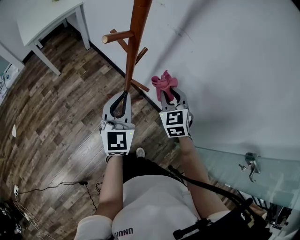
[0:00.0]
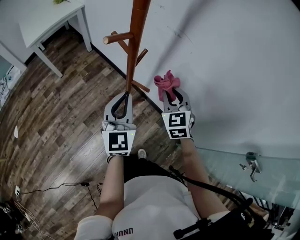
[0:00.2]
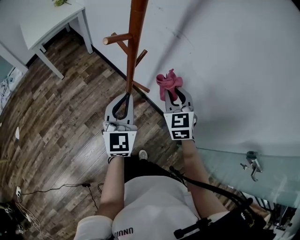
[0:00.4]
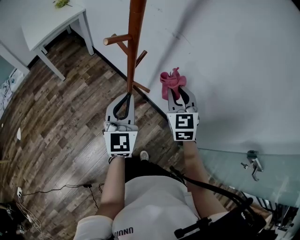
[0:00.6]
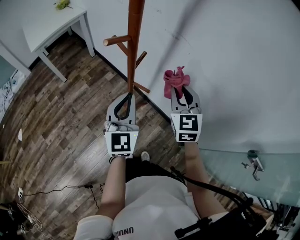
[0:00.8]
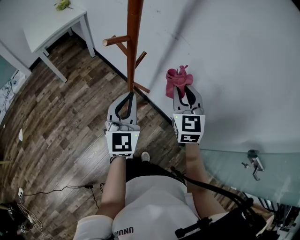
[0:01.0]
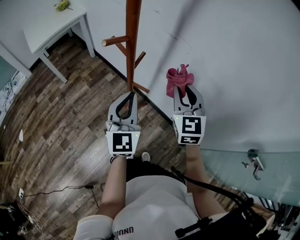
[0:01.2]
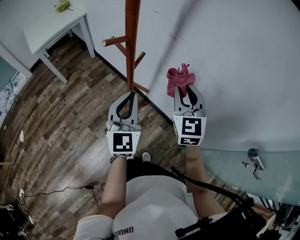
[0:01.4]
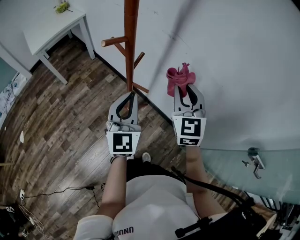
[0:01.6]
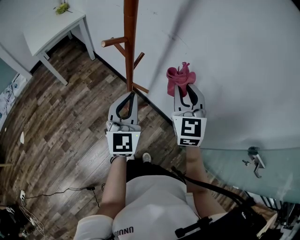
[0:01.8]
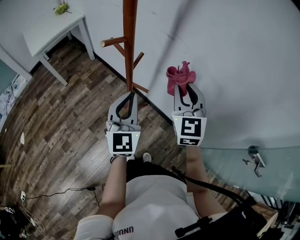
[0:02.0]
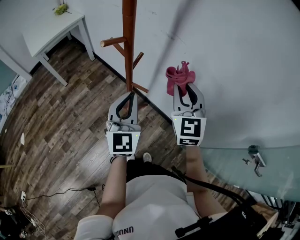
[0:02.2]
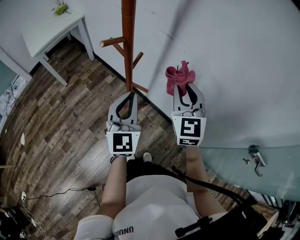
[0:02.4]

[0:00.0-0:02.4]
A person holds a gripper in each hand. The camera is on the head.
0:00.0 to 0:01.2: The right gripper is displaced upward by approximately 10 cm.
0:01.2 to 0:02.4: There are only small adjustments of the grippers.

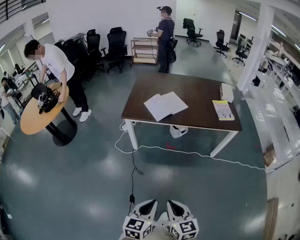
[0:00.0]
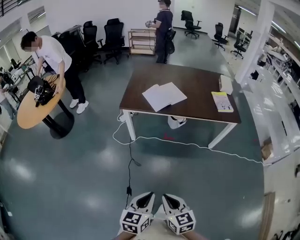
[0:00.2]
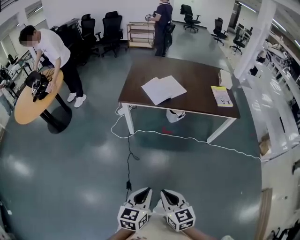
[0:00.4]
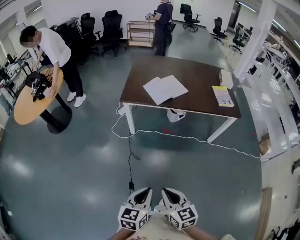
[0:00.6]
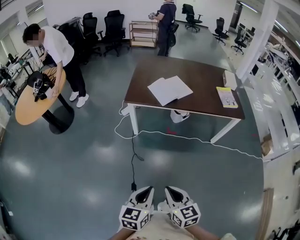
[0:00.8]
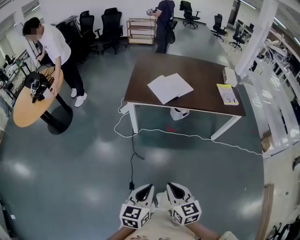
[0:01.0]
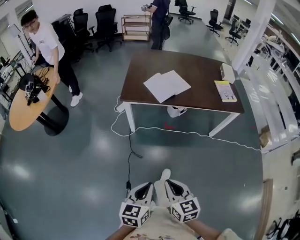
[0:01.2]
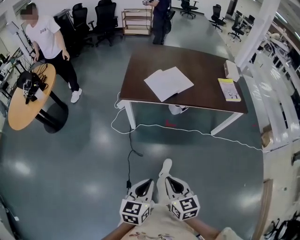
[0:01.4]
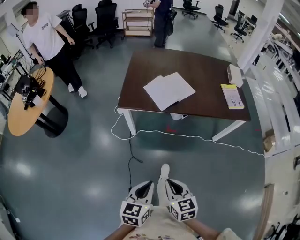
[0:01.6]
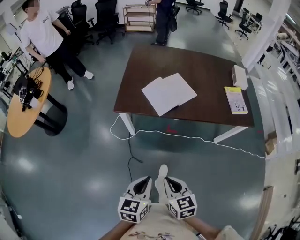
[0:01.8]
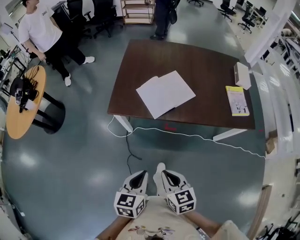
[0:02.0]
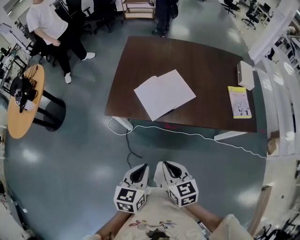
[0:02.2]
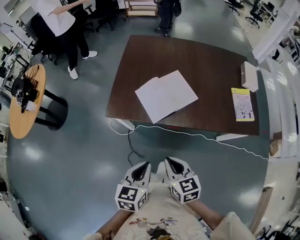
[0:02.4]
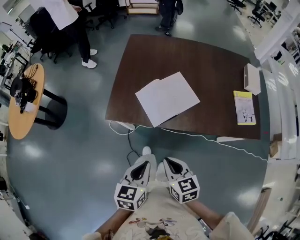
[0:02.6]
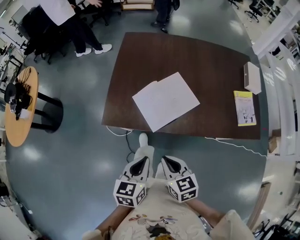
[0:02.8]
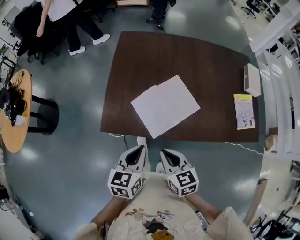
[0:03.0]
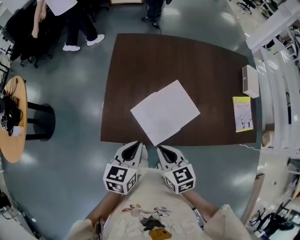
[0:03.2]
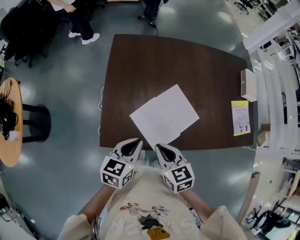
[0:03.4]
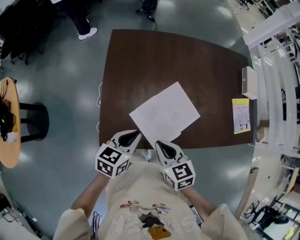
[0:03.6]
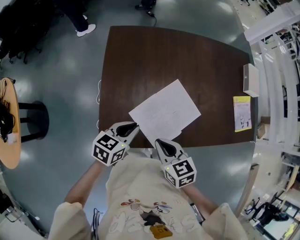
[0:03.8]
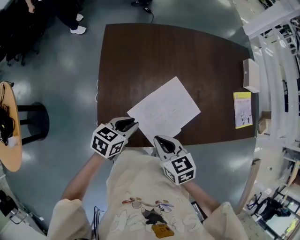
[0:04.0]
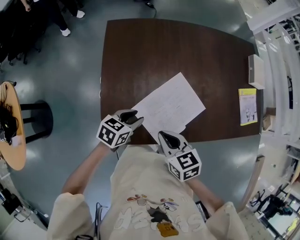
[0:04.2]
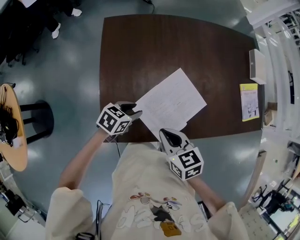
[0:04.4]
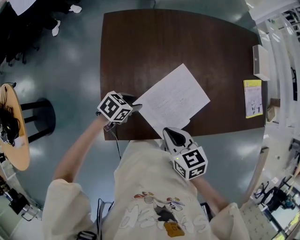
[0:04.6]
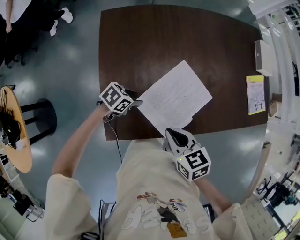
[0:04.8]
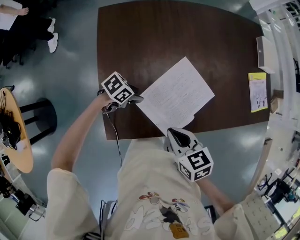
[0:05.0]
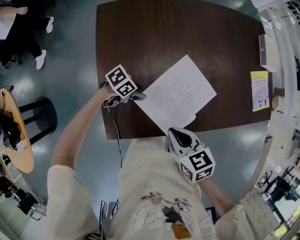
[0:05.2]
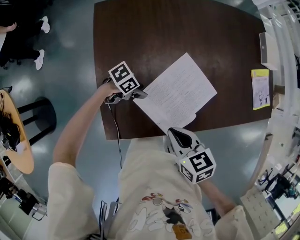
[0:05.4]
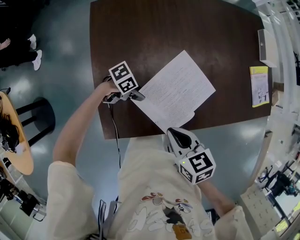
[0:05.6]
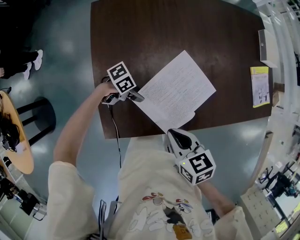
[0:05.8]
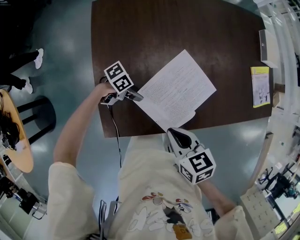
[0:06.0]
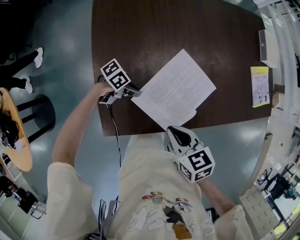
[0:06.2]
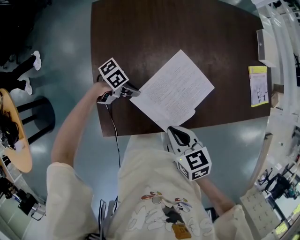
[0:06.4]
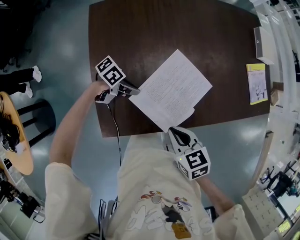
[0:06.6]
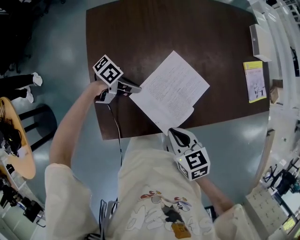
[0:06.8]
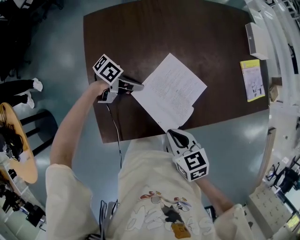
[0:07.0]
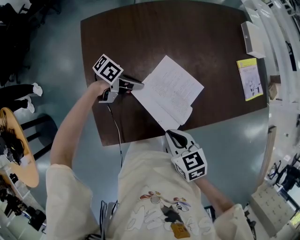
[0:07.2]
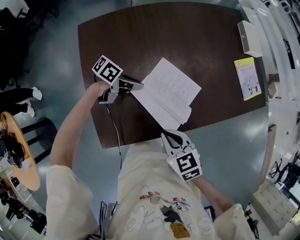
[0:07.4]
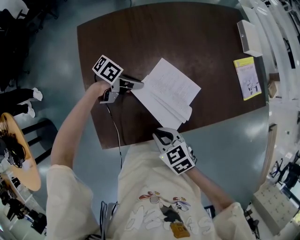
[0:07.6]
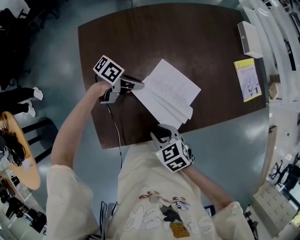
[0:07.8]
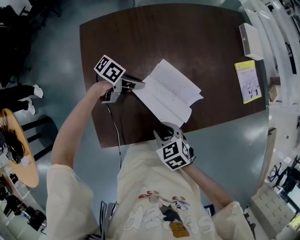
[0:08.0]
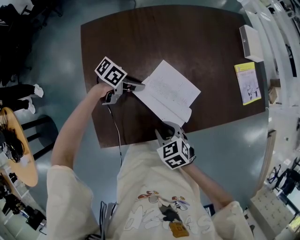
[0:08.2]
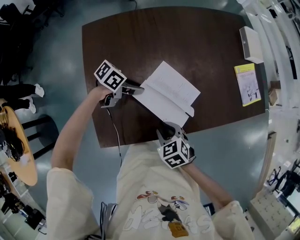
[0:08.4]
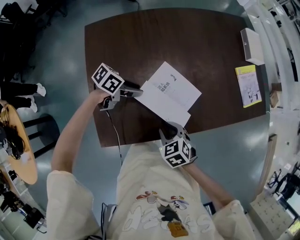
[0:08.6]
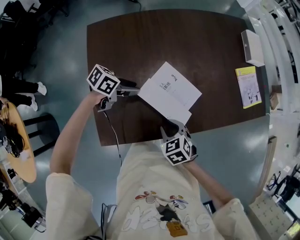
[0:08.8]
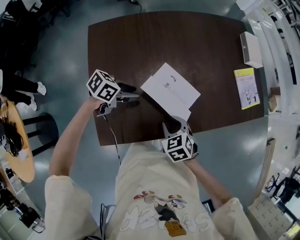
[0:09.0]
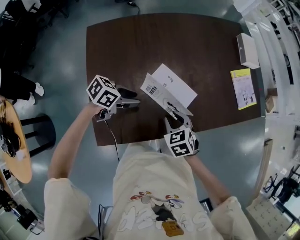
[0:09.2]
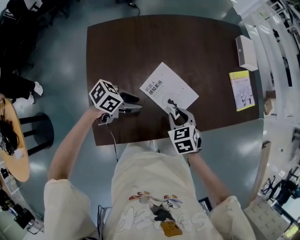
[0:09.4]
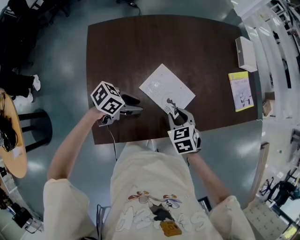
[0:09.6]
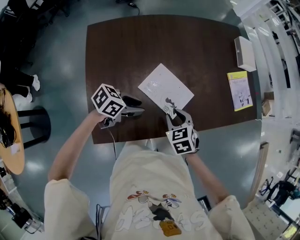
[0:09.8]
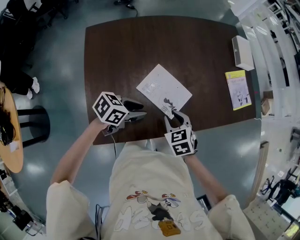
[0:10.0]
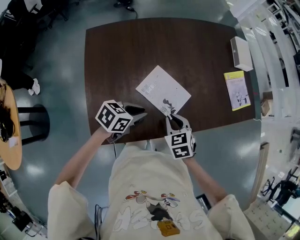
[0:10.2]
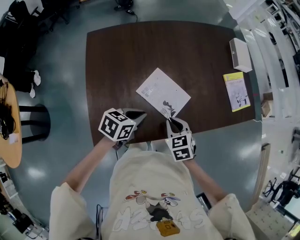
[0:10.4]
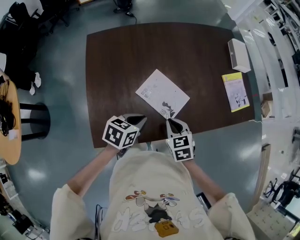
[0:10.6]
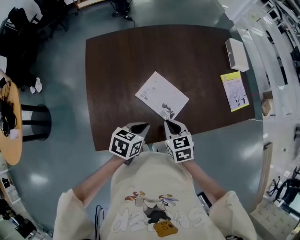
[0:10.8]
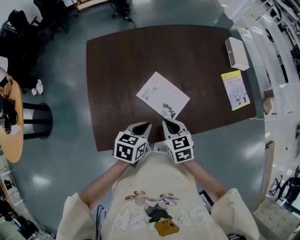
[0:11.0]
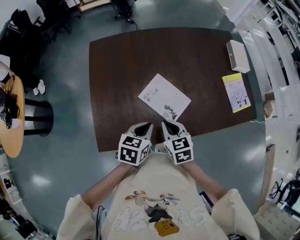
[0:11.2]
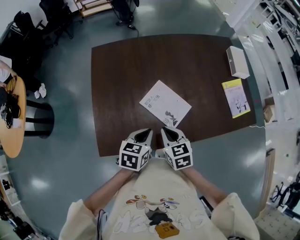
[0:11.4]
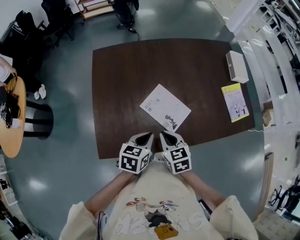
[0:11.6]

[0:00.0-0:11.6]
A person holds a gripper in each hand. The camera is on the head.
0:00.0 to 0:01.4: The grippers both shift forward and to the left by about 20 cm.
0:01.4 to 0:02.8: The two grippers travel together, forward, roughly 50 cm.
0:02.8 to 0:04.4: The right gripper shifts by approximately 30 cm. The left gripper shifts by about 40 cm, swivels about 50 degrees, and opens up.
0:04.4 to 0:05.8: The left gripper goes about 15 cm downward, and changes its angle by about 40 degrees.
0:05.8 to 0:07.2: The left gripper shifts about 10 cm upward, swivels roughly 20 degrees, and closes up. The right gripper moves some 5 cm.
0:07.2 to 0:08.8: The right gripper goes some 5 cm downward, changes its angle by some 20 degrees, and opens up; the left gripper changes its angle by roughly 20 degrees, and opens up.
0:08.8 to 0:10.2: The left gripper moves some 15 cm, and closes up, while the right gripper shifts by some 10 cm.
0:10.2 to 0:11.6: The right gripper shifts by approximately 5 cm. The left gripper moves roughly 5 cm, and turns by approximately 30 degrees.

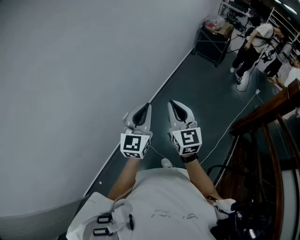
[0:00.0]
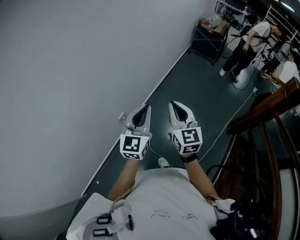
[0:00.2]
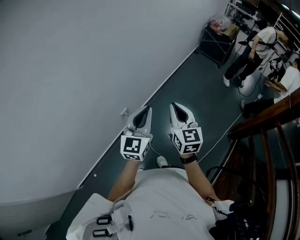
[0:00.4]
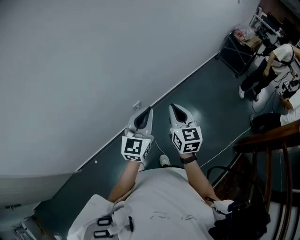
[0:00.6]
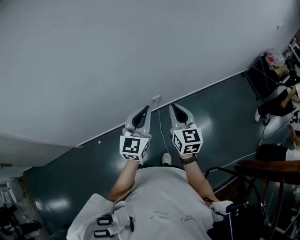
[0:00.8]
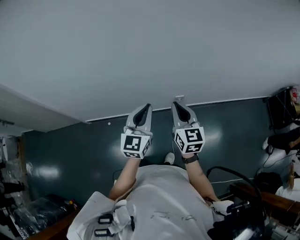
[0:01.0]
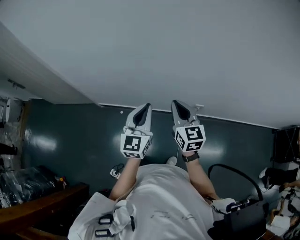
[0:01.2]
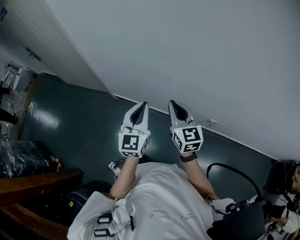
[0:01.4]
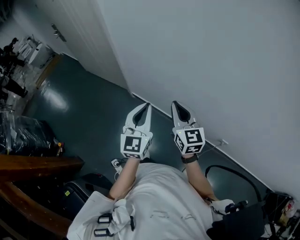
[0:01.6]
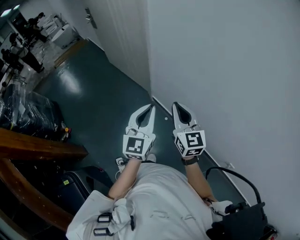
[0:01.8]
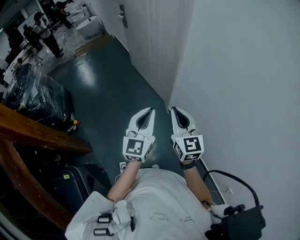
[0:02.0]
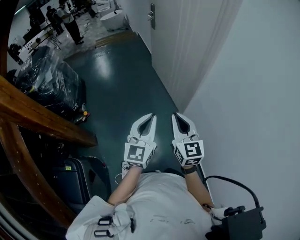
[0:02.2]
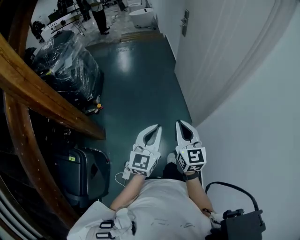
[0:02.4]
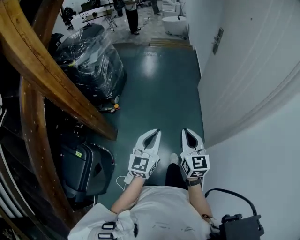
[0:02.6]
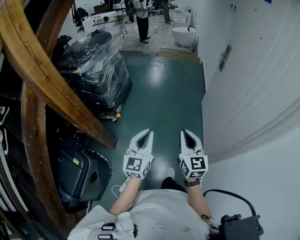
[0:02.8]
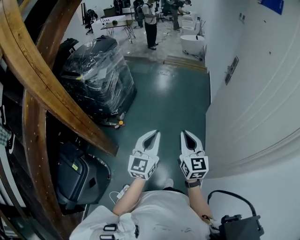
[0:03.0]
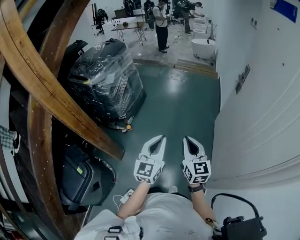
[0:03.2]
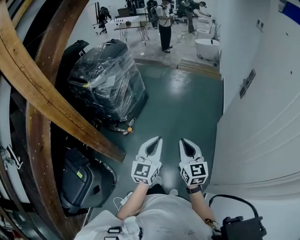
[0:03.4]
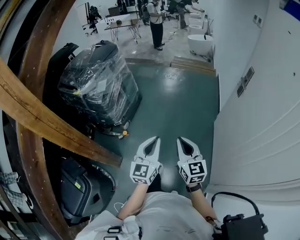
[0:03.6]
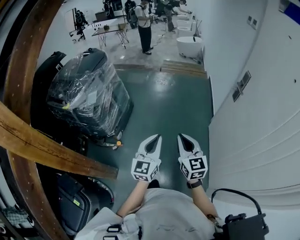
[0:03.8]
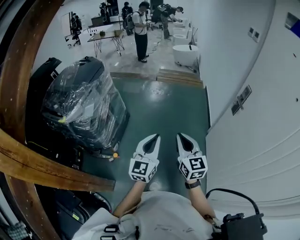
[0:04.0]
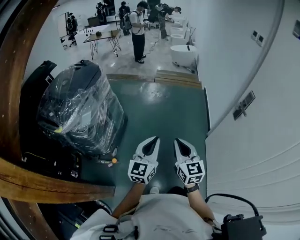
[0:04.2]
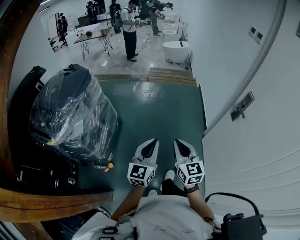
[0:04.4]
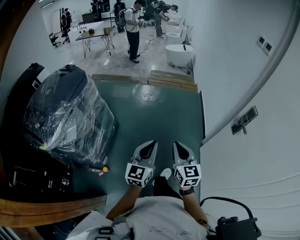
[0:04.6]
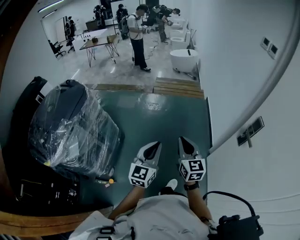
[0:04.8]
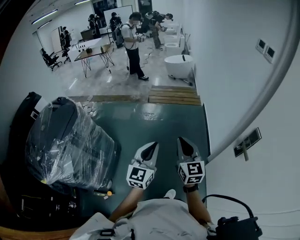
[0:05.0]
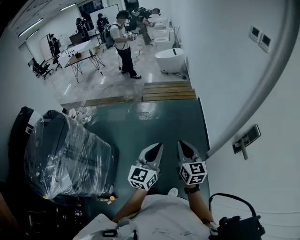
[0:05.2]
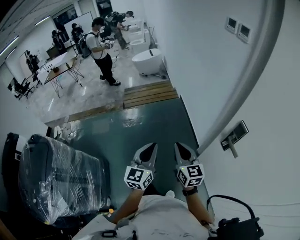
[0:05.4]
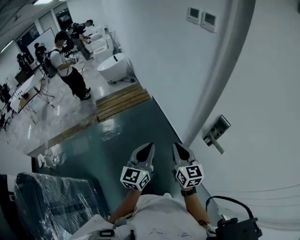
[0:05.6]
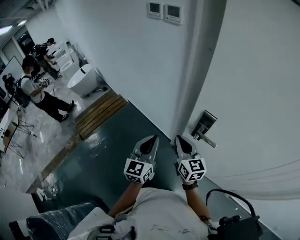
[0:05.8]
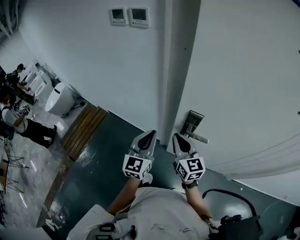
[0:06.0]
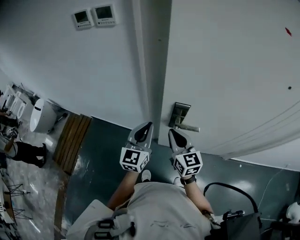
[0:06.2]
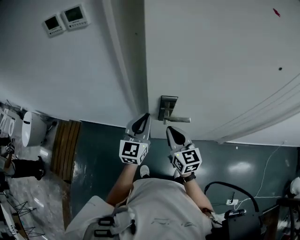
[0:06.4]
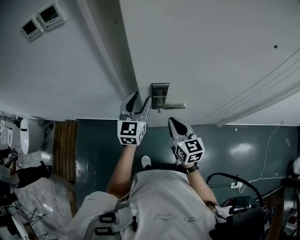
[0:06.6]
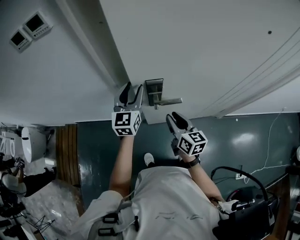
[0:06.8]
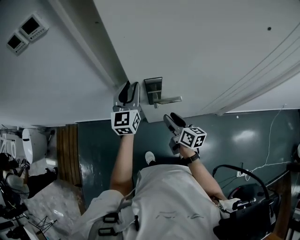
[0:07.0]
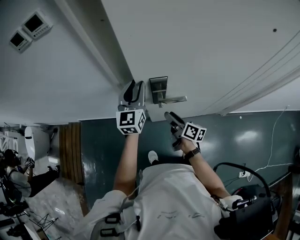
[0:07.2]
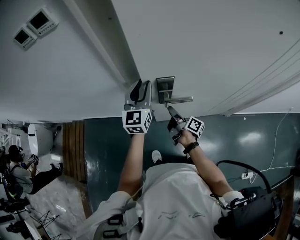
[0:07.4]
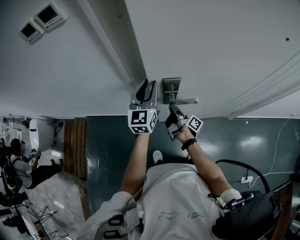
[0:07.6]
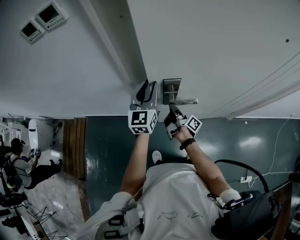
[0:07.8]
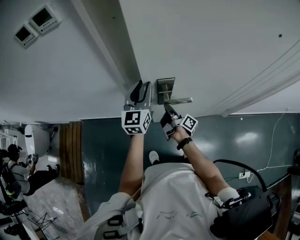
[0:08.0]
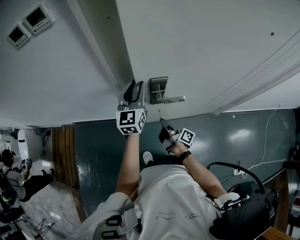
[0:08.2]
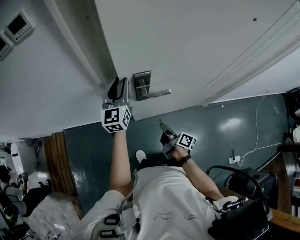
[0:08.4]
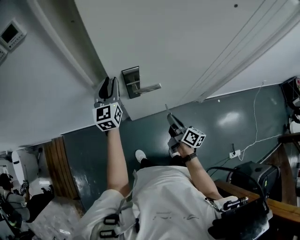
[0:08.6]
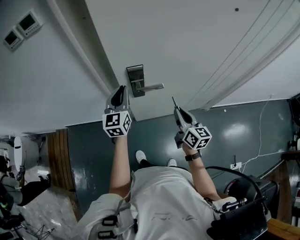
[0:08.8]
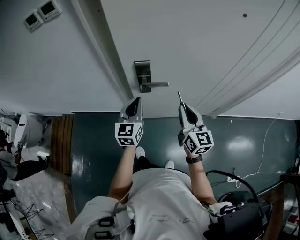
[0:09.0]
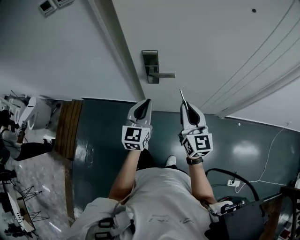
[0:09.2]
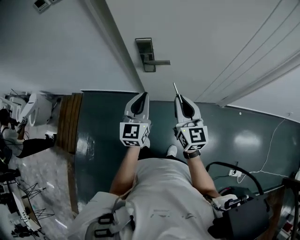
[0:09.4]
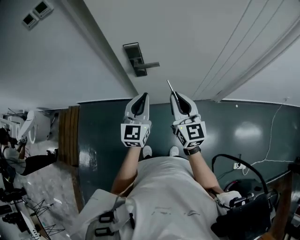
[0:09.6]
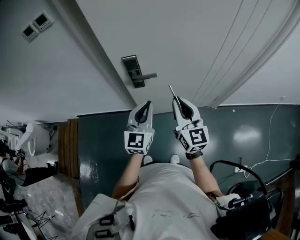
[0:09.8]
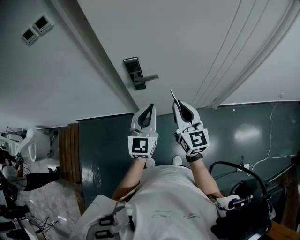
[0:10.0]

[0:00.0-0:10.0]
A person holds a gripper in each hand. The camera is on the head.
0:00.0 to 0:01.4: Both grippers are carried some 50 cm. The left gripper swivels approximately 80 degrees. Meanwhile the right gripper changes its angle by approximately 80 degrees.
0:01.4 to 0:02.8: The pair of grippers is taken roughly 70 cm. The right gripper rotates roughly 70 degrees. The left gripper turns by roughly 80 degrees.
0:02.8 to 0:04.2: Both grippers are carried forward, about 50 cm.
0:04.2 to 0:05.8: Both grippers are carried some 60 cm. The left gripper changes its angle by some 50 degrees. The right gripper swivels roughly 50 degrees.
0:05.8 to 0:07.2: The right gripper travels downward by approximately 15 cm, rolls clockwise, seen from behind, by roughly 50 degrees, and opens up, while the left gripper ends up roughly 25 cm from where it was, changes its angle by about 30 degrees, and opens its fingers.
0:07.2 to 0:08.6: The right gripper heads backward and to the right, covering some 15 cm, and closes.
0:08.6 to 0:10.0: The left gripper heads backward and to the right, covering approximately 30 cm, and closes its fingers, while the right gripper heads upward, covering about 20 cm, and rotates around the line of its fingers by about 50 degrees, counterclockwise from behind.
